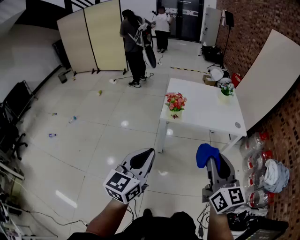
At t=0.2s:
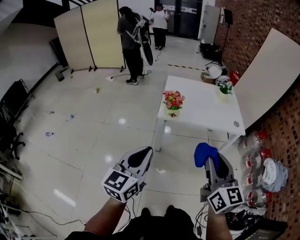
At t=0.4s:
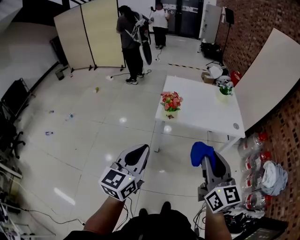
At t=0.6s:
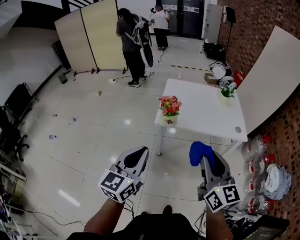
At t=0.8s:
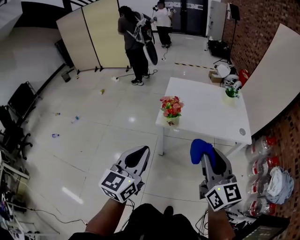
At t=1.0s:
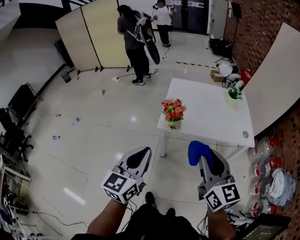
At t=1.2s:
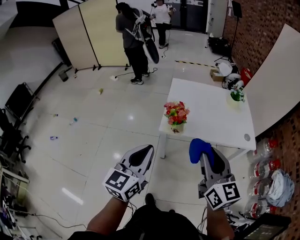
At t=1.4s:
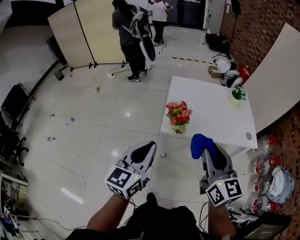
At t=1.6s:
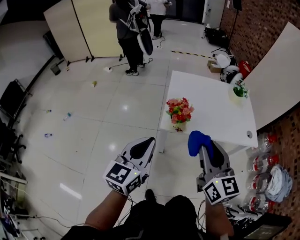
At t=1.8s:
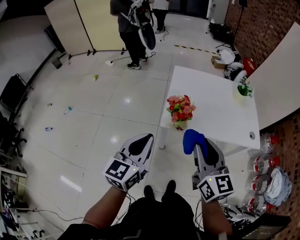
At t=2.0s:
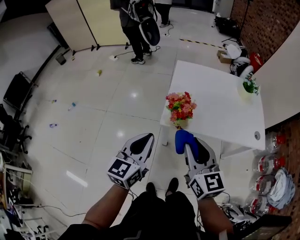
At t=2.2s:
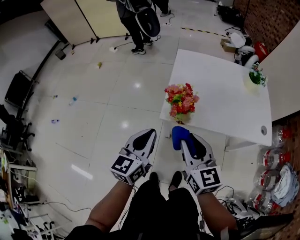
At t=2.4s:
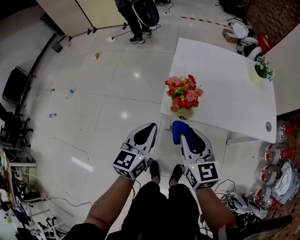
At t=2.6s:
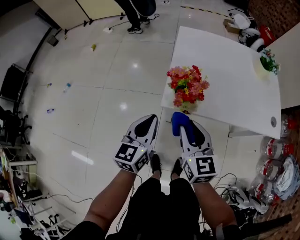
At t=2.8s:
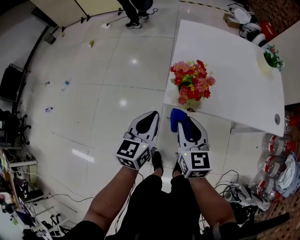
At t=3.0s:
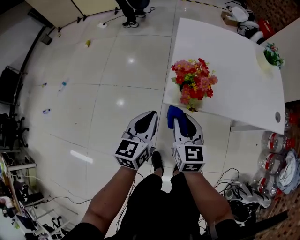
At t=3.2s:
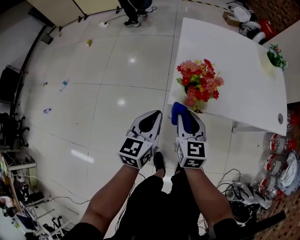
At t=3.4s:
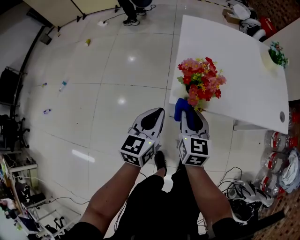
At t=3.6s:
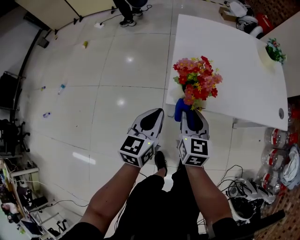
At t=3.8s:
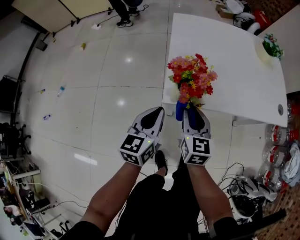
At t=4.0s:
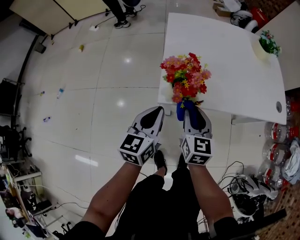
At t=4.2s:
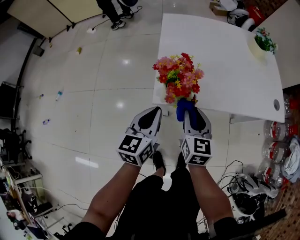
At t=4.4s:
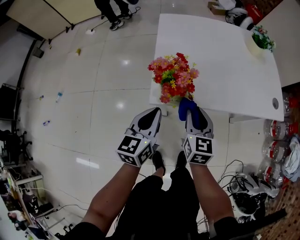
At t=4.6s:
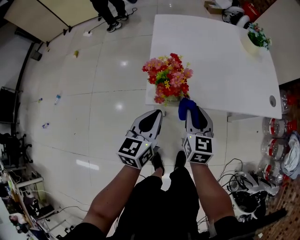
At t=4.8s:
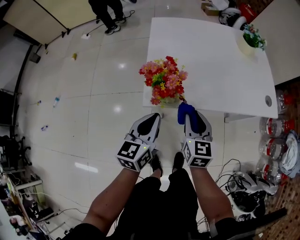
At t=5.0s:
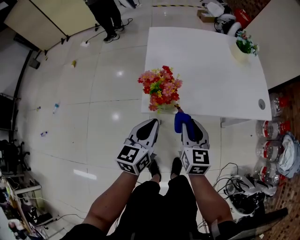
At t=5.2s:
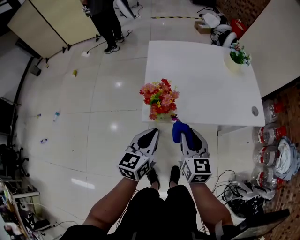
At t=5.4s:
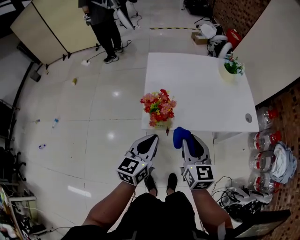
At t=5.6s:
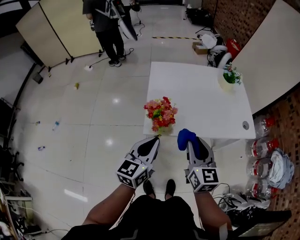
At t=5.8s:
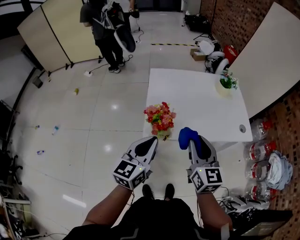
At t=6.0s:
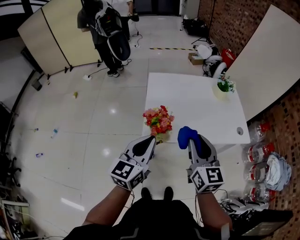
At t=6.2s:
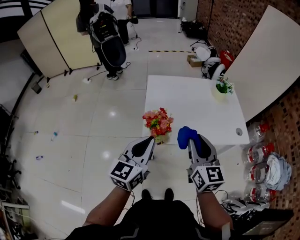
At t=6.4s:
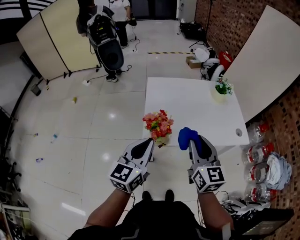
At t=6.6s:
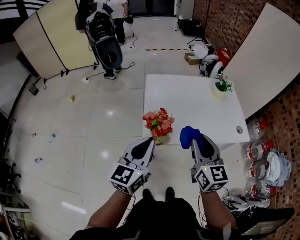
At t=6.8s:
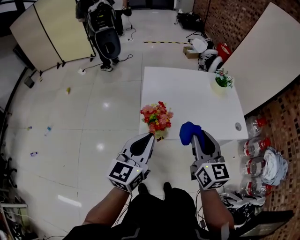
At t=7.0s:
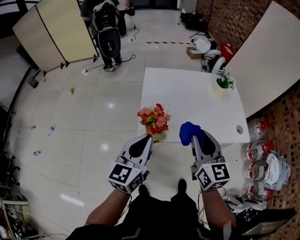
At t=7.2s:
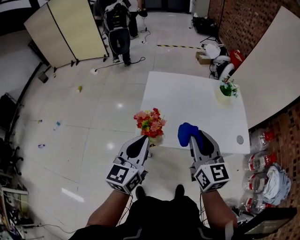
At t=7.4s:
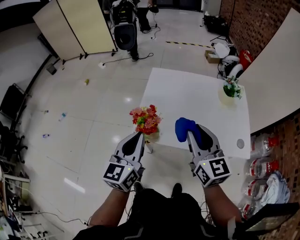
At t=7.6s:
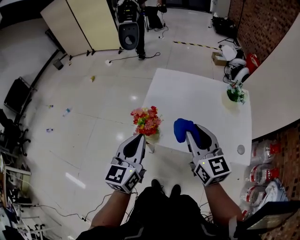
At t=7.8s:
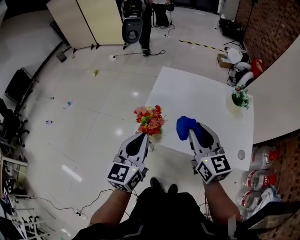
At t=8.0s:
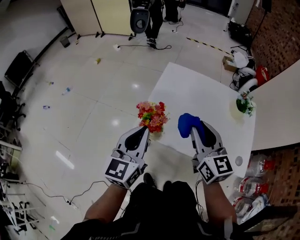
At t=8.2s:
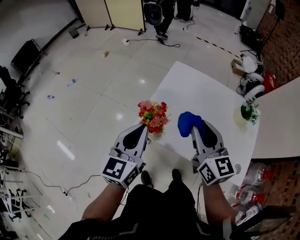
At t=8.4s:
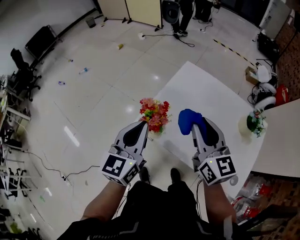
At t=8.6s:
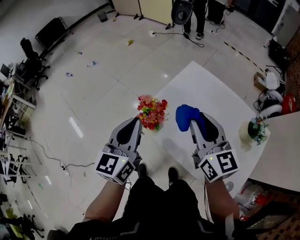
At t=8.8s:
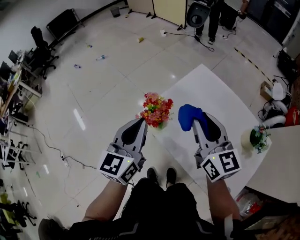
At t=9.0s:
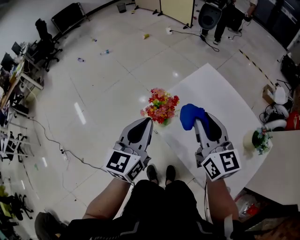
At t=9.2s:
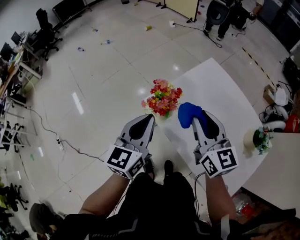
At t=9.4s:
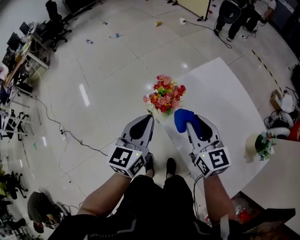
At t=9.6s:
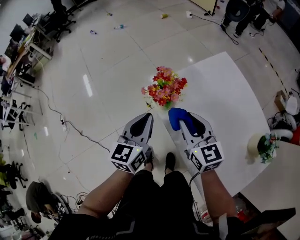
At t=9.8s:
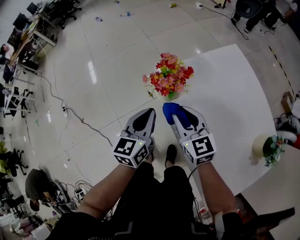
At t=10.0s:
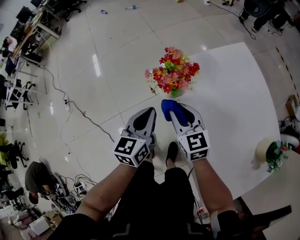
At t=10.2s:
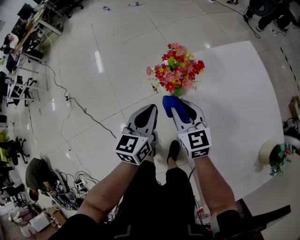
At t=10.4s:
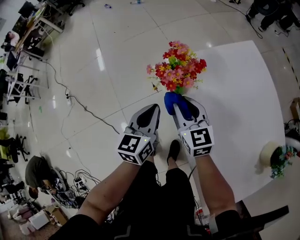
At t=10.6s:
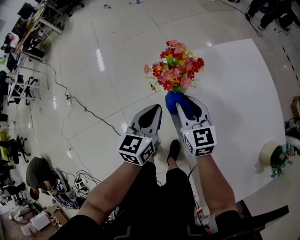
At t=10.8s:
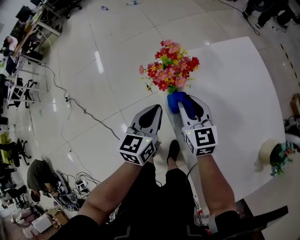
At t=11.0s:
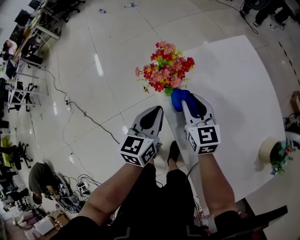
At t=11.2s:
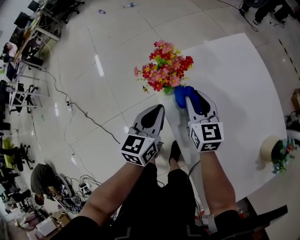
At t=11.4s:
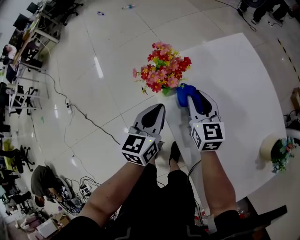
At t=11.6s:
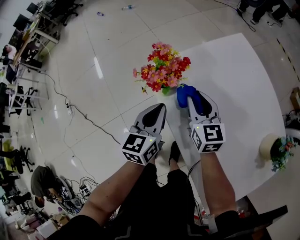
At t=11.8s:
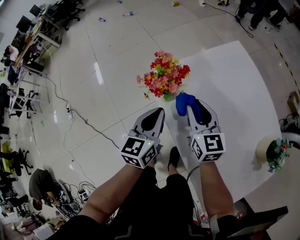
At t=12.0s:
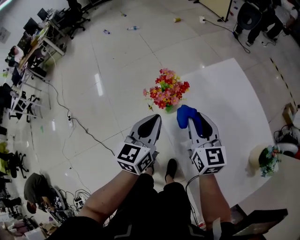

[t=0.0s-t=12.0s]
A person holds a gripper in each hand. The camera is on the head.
t=0.0s to t=1.6s: Both grippers move forward, approximately 25 cm.
t=1.6s to t=3.0s: Both grippers travel together downward and forward, approximately 30 cm.
t=3.0s to t=4.4s: The right gripper heads to the right, covering about 10 cm; the left gripper goes some 5 cm to the right.
t=4.4s to t=6.0s: Both grippers travel together upward, some 25 cm.
t=6.0s to t=7.6s: The left gripper changes place by about 10 cm, and rotates approximately 30 degrees. Meanwhile the right gripper moves approximately 10 cm, and swivels about 20 degrees.
t=7.6s to t=9.0s: The left gripper swivels approximately 30 degrees. Meanwhile the right gripper changes place by some 10 cm, and rotates about 30 degrees.
t=9.0s to t=10.4s: The two grippers go approximately 25 cm downward. The left gripper swivels some 30 degrees; the right gripper rotates roughly 30 degrees.
t=10.4s to t=12.0s: The right gripper heads upward and to the right, covering about 15 cm; the left gripper heads upward, covering roughly 10 cm.

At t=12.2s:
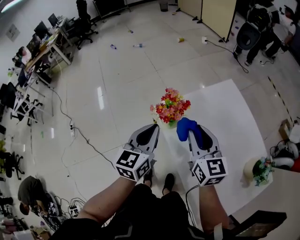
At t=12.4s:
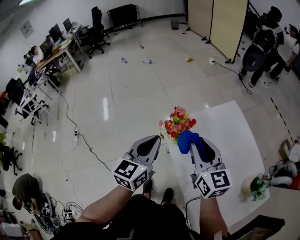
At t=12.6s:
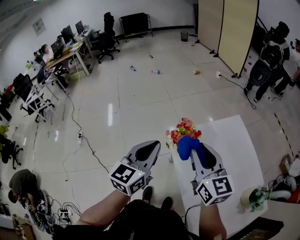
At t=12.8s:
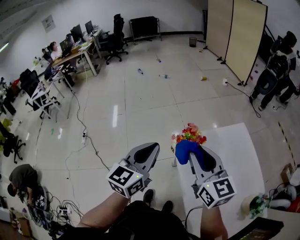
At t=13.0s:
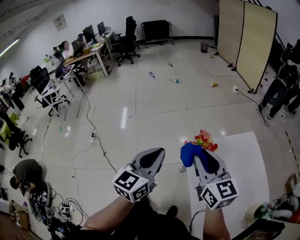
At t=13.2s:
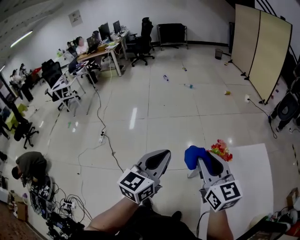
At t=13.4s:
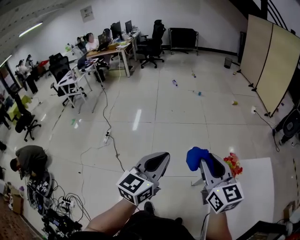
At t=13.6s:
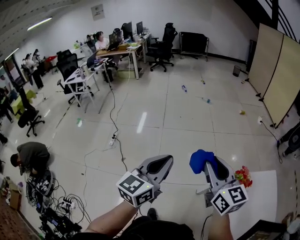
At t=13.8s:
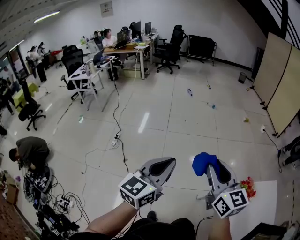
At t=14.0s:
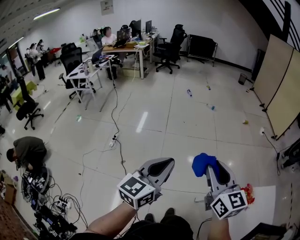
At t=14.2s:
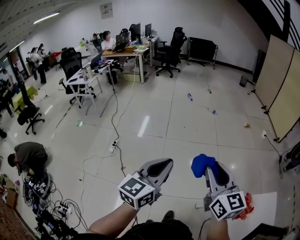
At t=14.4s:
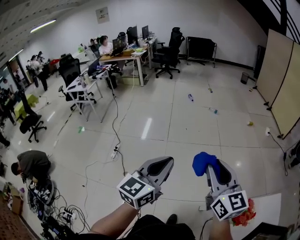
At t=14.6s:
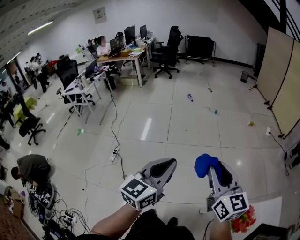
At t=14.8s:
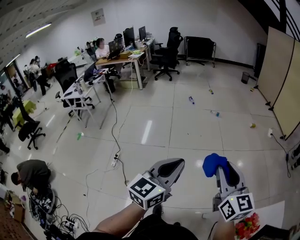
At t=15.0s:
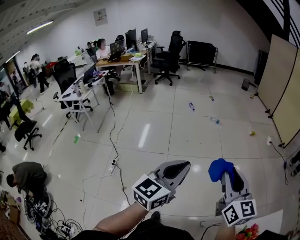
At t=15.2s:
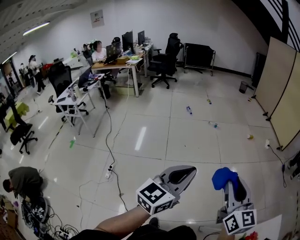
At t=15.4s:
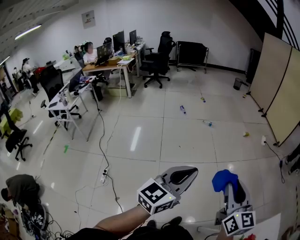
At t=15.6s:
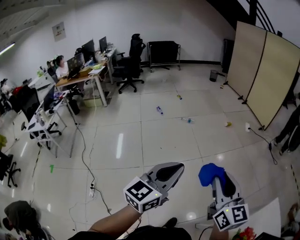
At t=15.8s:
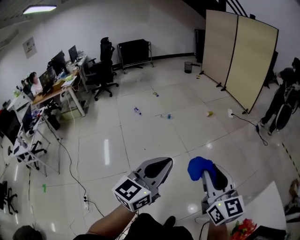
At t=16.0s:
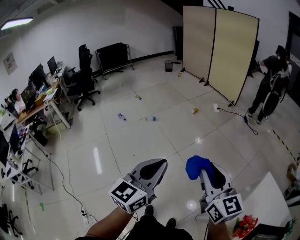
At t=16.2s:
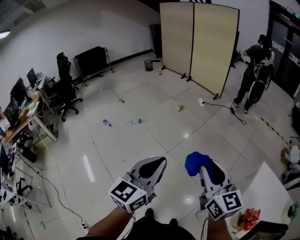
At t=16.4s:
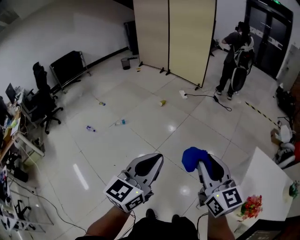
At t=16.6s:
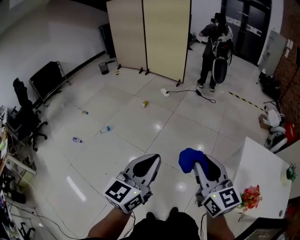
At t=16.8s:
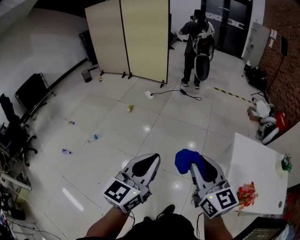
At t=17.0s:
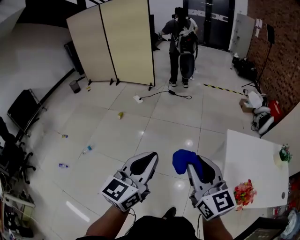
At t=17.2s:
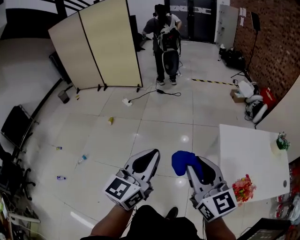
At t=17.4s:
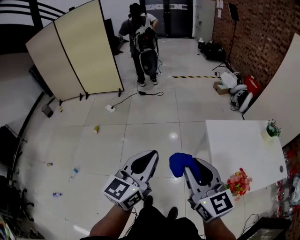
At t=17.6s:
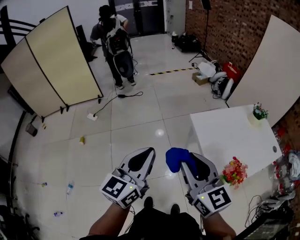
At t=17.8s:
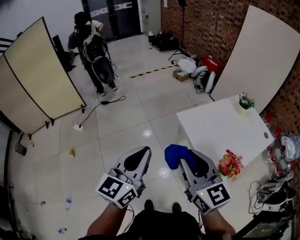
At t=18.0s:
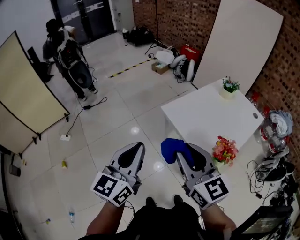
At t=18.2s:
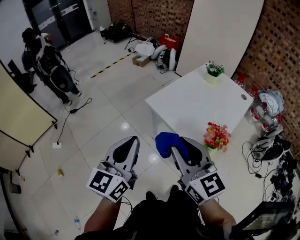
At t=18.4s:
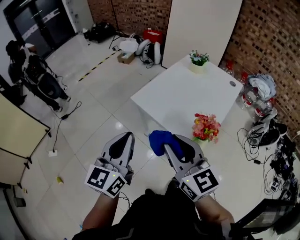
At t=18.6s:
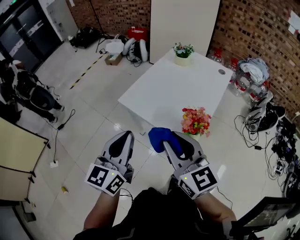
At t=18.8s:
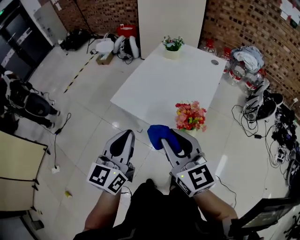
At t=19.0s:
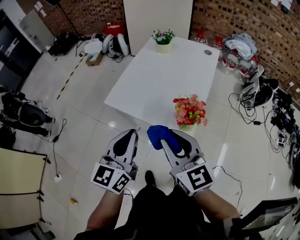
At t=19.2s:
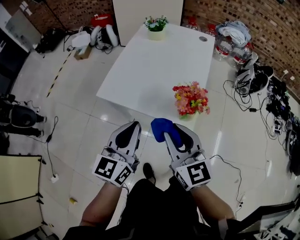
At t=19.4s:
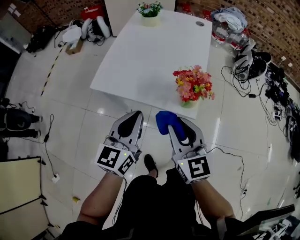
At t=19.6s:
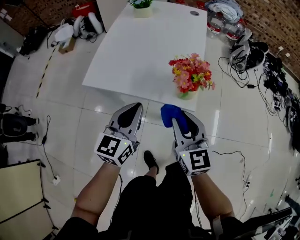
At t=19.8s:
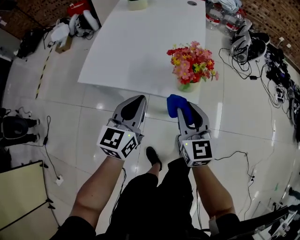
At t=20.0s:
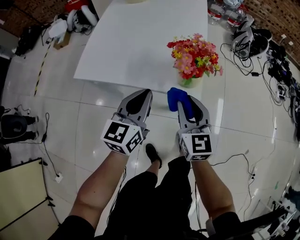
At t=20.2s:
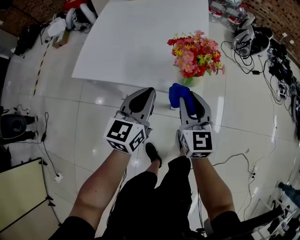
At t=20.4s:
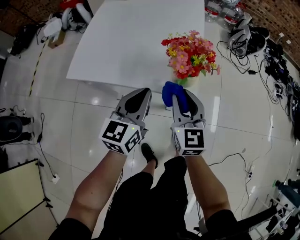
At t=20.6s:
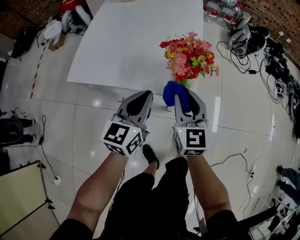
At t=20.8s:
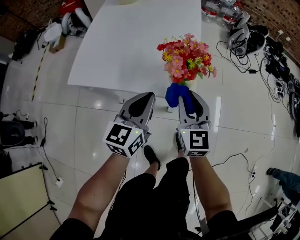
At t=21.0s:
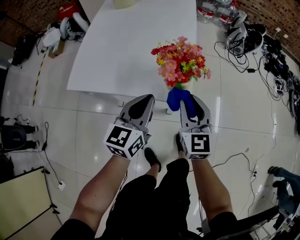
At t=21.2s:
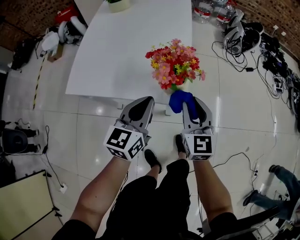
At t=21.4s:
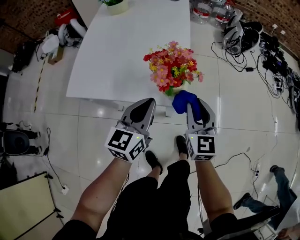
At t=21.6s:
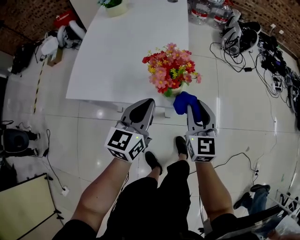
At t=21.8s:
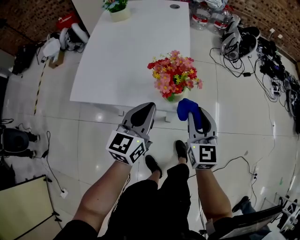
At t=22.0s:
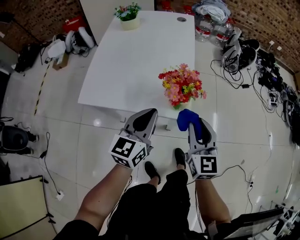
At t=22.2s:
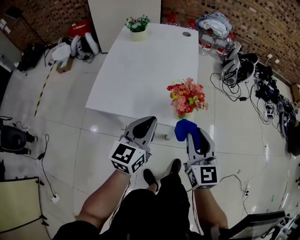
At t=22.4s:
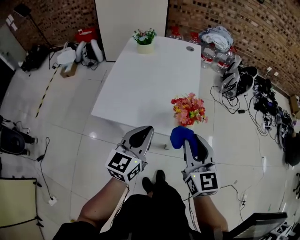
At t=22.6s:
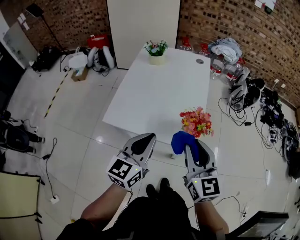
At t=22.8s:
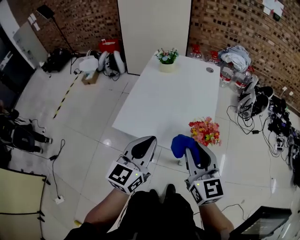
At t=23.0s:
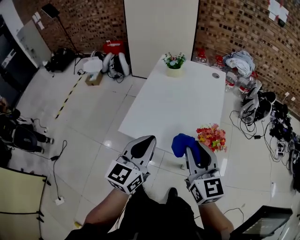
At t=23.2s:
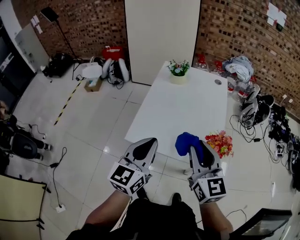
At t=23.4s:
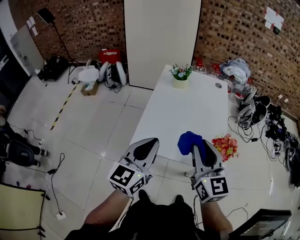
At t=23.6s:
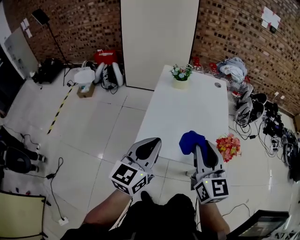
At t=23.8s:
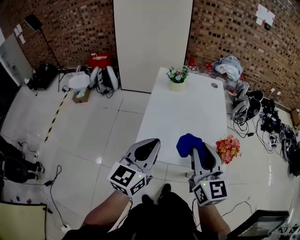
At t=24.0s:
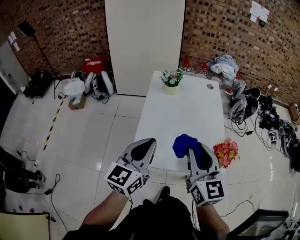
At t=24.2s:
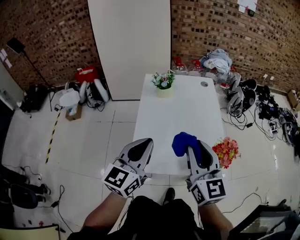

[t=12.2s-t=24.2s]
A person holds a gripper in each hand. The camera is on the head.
t=12.2s to t=13.8s: Both grippers are carried to the left, roughly 40 cm. The left gripper changes its angle by approximately 20 degrees. Meanwhile the right gripper turns by approximately 30 degrees.
t=13.8s to t=15.2s: Both grippers travel together forward, about 35 cm.
t=15.2s to t=16.6s: The left gripper changes place by roughly 40 cm, and swivels about 50 degrees. Meanwhile the right gripper changes place by some 30 cm, and swivels roughly 50 degrees.
t=16.6s to t=18.2s: The left gripper moves about 40 cm, and changes its angle by approximately 60 degrees. The right gripper shifts by roughly 30 cm, and rotates roughly 60 degrees.
t=18.2s to t=19.8s: Both grippers move downward, approximately 30 cm. The left gripper swivels approximately 40 degrees. The right gripper changes its angle by approximately 50 degrees.
t=19.8s to t=21.2s: Both grippers travel together to the right, some 5 cm.
t=21.2s to t=22.6s: The two grippers go roughly 20 cm upward and to the left.
t=22.6s to t=24.2s: Both grippers move to the left, forward and upward, some 25 cm.
